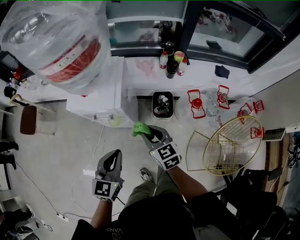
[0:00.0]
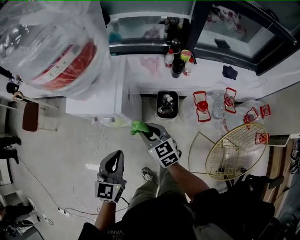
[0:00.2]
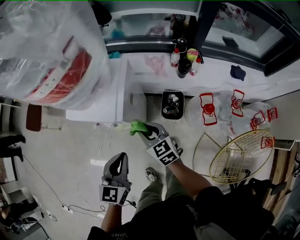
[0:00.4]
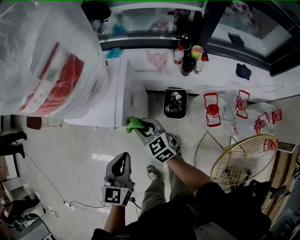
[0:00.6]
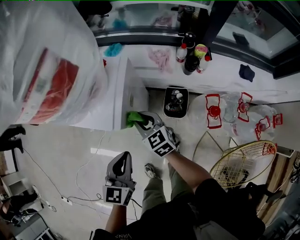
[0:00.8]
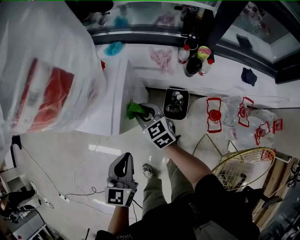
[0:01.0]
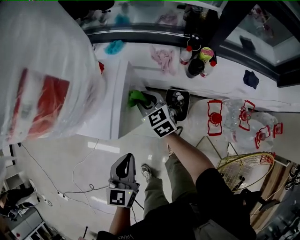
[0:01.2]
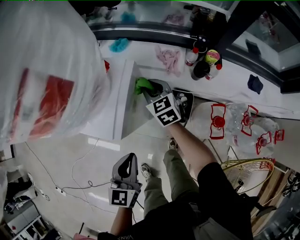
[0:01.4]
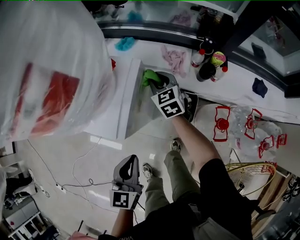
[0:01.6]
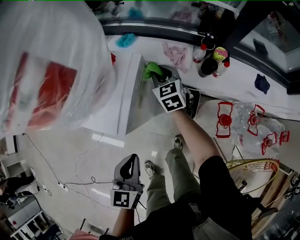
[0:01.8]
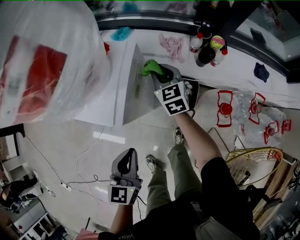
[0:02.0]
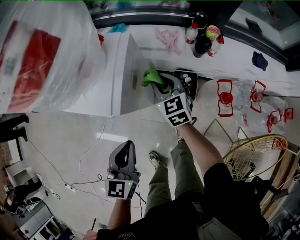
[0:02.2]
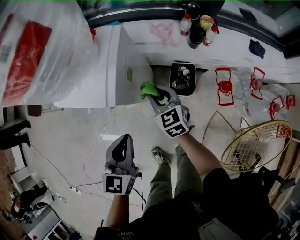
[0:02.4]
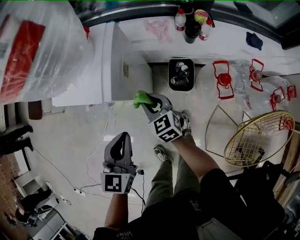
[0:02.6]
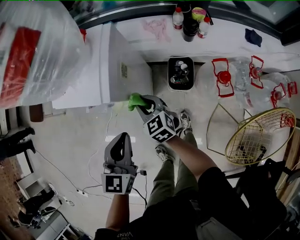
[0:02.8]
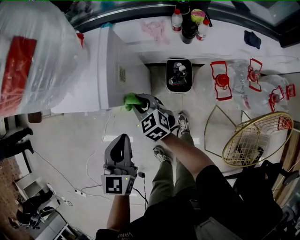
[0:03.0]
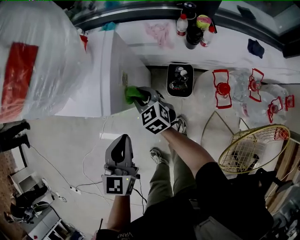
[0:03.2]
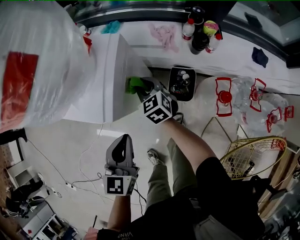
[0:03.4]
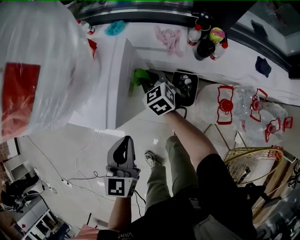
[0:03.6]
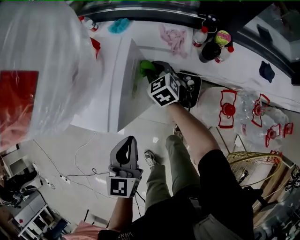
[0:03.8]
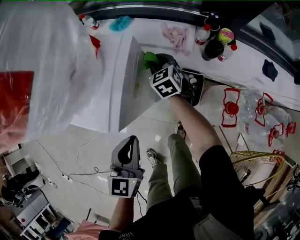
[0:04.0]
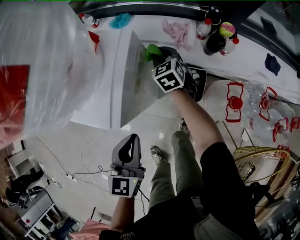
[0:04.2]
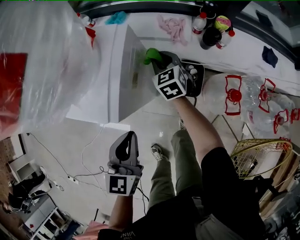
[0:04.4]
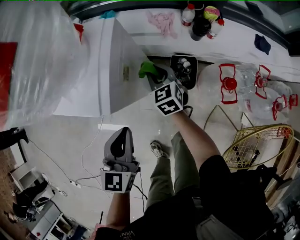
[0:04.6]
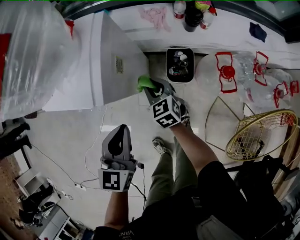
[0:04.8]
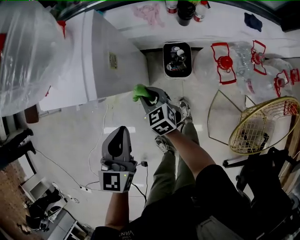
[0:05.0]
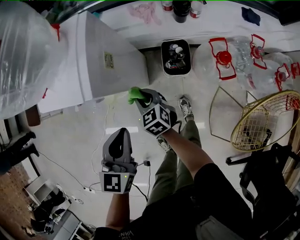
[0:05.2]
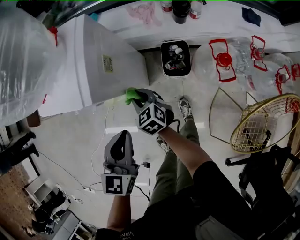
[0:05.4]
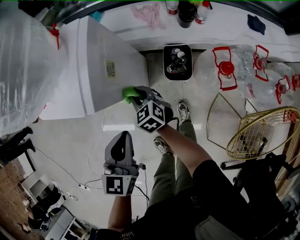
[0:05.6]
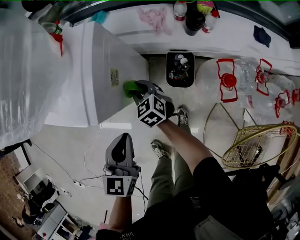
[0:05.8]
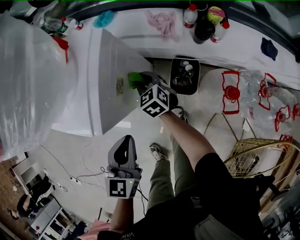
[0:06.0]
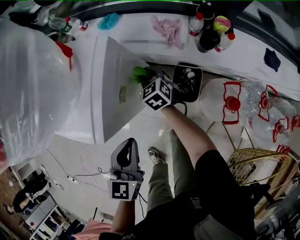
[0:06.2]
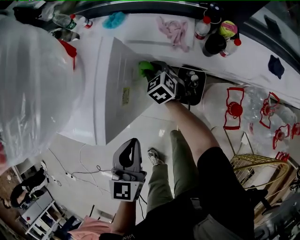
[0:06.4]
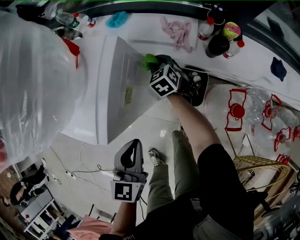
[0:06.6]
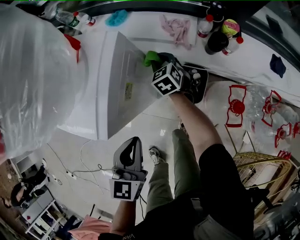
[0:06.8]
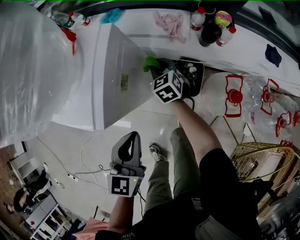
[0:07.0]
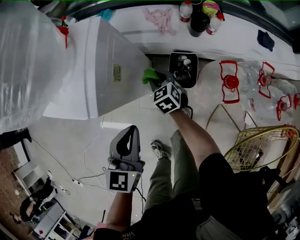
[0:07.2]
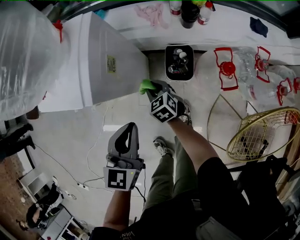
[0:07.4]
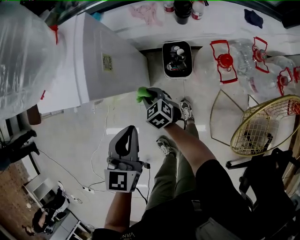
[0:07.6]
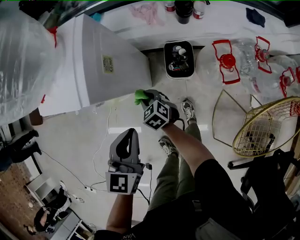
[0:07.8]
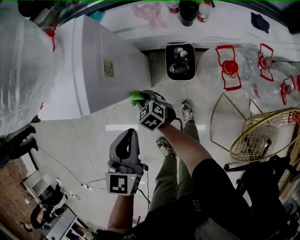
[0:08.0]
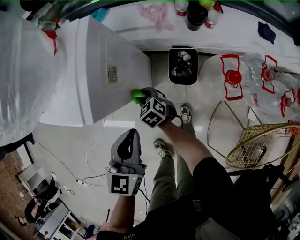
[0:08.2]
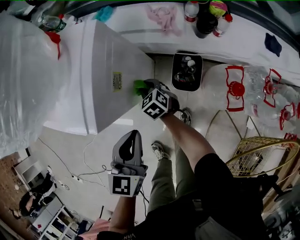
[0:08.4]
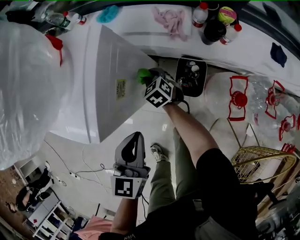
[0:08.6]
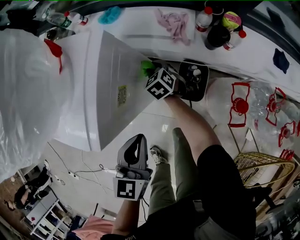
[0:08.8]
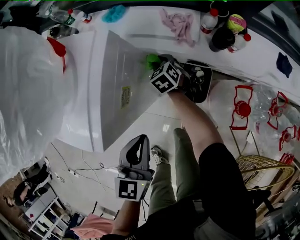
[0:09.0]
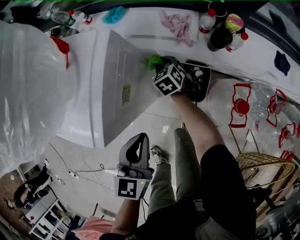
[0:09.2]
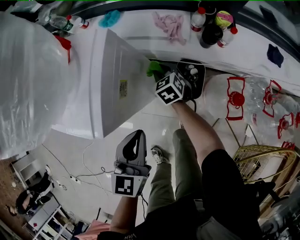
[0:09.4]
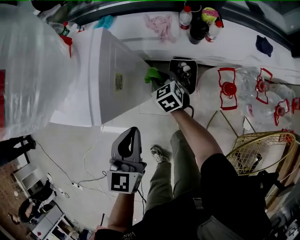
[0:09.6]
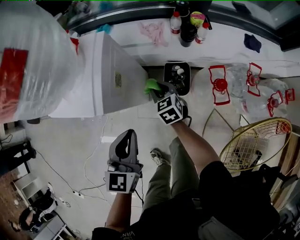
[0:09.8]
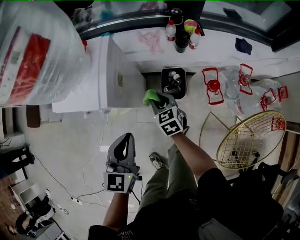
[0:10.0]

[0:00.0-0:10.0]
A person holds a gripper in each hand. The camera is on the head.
0:00.0 to 0:01.4: The left gripper is displaced forward, downward and to the right by about 15 cm, while the right gripper goes about 30 cm forward.
0:01.4 to 0:02.8: The left gripper moves about 5 cm, while the right gripper moves backward, some 20 cm.
0:02.8 to 0:04.2: The left gripper travels forward by approximately 5 cm, while the right gripper travels forward by some 25 cm.
0:04.2 to 0:05.8: The right gripper moves backward, approximately 20 cm.
0:05.8 to 0:07.2: The right gripper heads to the right, covering approximately 5 cm, and travels forward and back again, roughly 15 cm each way.
0:07.2 to 0:08.6: The right gripper moves forward and downward, some 10 cm.
0:08.6 to 0:10.0: The left gripper heads upward and backward, covering approximately 10 cm; the right gripper goes roughly 25 cm upward, backward and to the right, and rotates approximately 20 degrees.

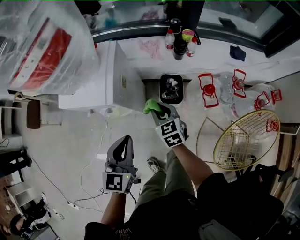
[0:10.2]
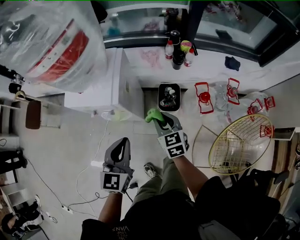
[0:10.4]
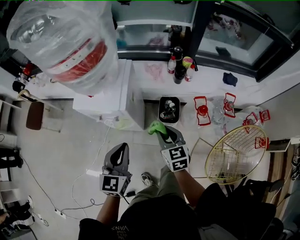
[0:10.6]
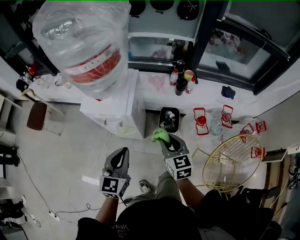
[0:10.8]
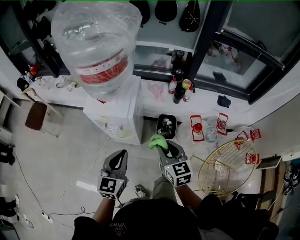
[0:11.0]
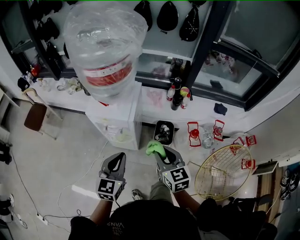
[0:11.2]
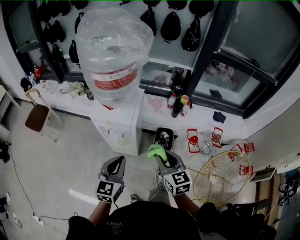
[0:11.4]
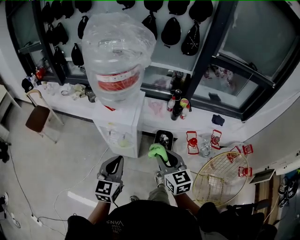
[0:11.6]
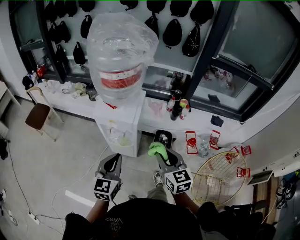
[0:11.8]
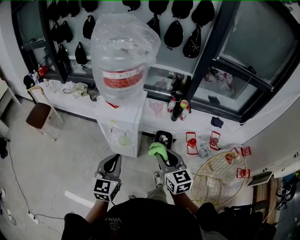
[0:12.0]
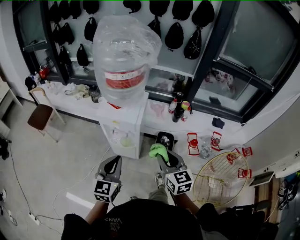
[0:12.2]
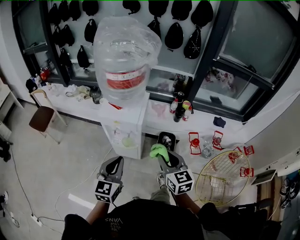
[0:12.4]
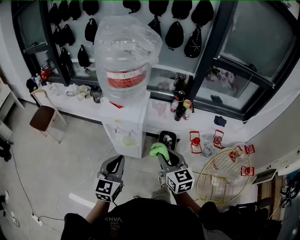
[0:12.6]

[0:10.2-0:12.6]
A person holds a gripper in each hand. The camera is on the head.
0:10.2 to 0:11.4: The right gripper heads upward and backward, covering approximately 25 cm. Meanwhile the left gripper is displaced upward, to the left and backward by about 15 cm.
0:11.4 to 0:12.6: The left gripper moves some 5 cm.

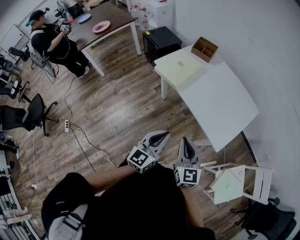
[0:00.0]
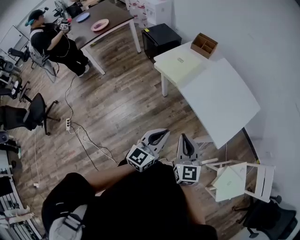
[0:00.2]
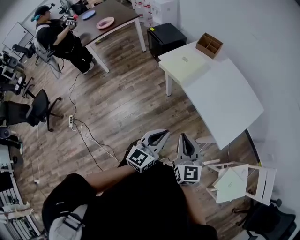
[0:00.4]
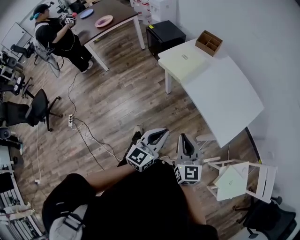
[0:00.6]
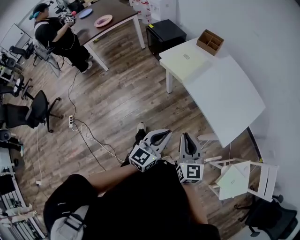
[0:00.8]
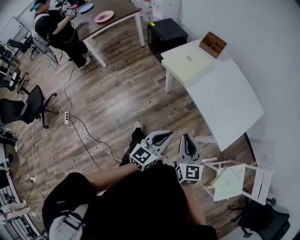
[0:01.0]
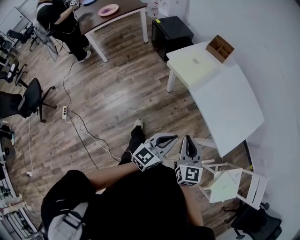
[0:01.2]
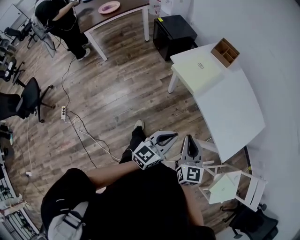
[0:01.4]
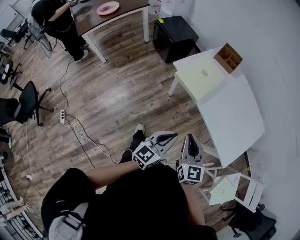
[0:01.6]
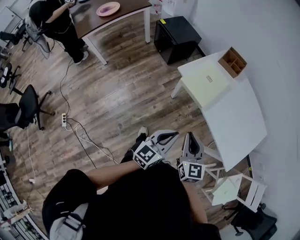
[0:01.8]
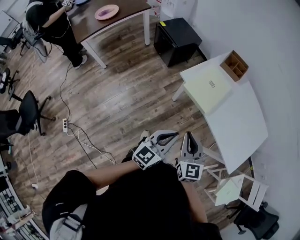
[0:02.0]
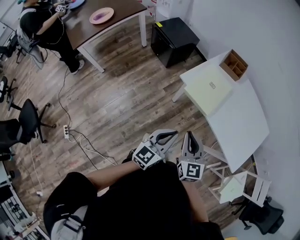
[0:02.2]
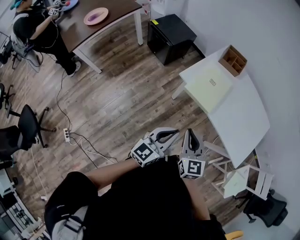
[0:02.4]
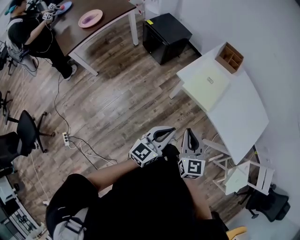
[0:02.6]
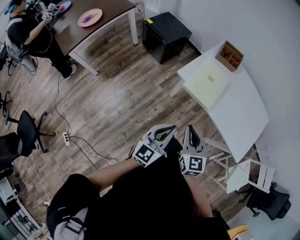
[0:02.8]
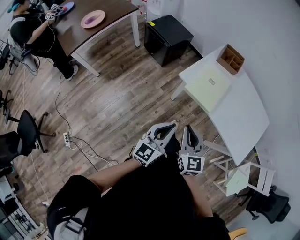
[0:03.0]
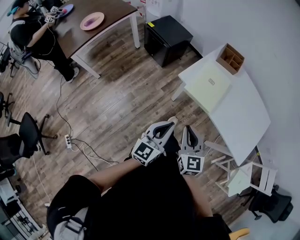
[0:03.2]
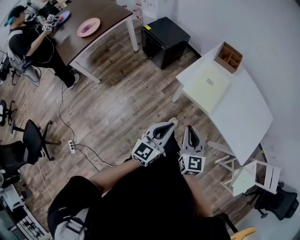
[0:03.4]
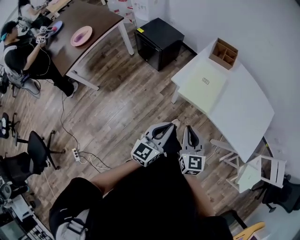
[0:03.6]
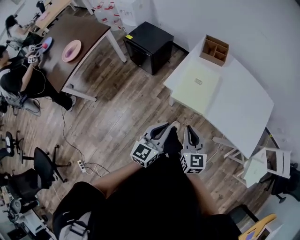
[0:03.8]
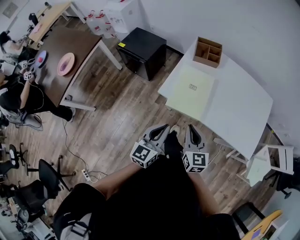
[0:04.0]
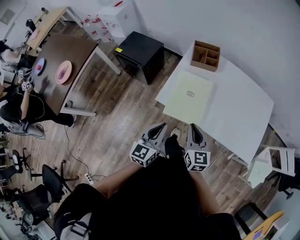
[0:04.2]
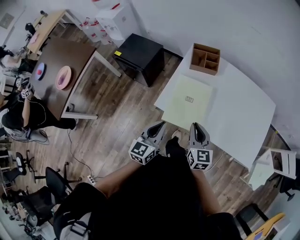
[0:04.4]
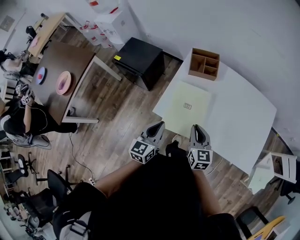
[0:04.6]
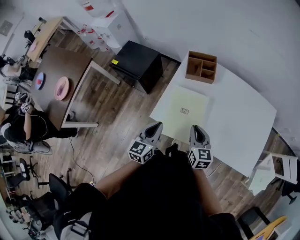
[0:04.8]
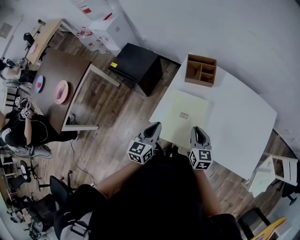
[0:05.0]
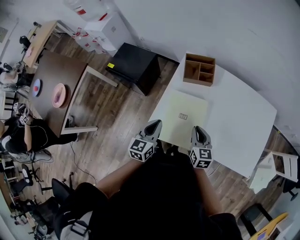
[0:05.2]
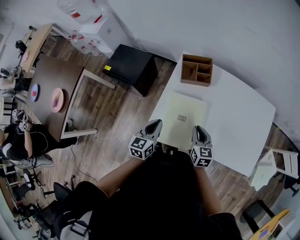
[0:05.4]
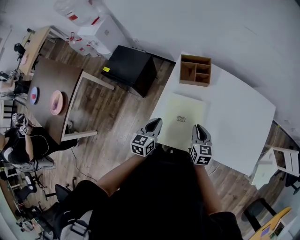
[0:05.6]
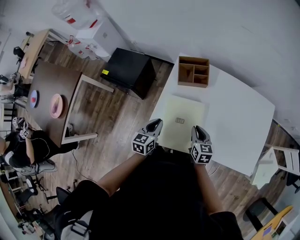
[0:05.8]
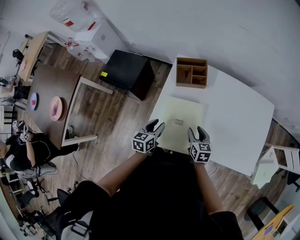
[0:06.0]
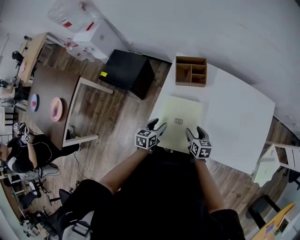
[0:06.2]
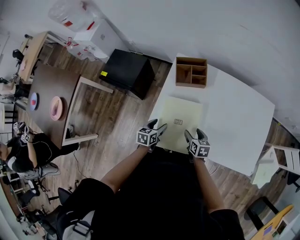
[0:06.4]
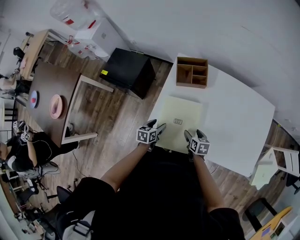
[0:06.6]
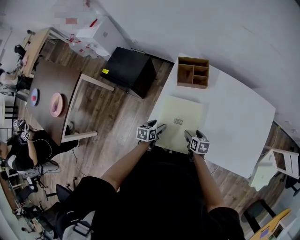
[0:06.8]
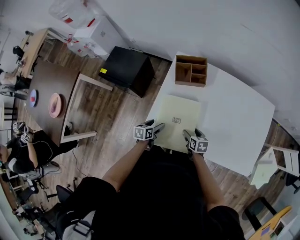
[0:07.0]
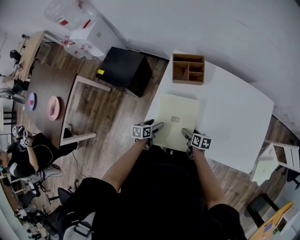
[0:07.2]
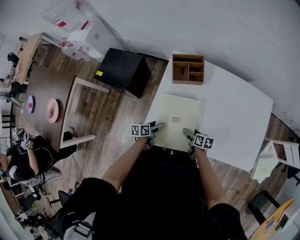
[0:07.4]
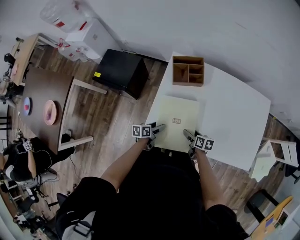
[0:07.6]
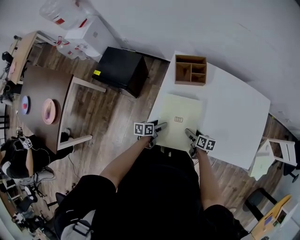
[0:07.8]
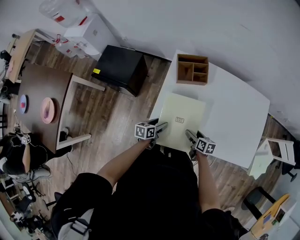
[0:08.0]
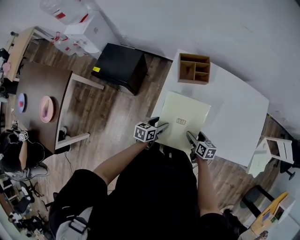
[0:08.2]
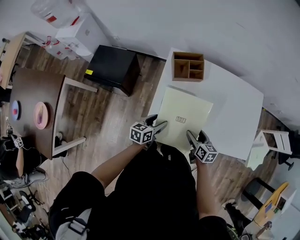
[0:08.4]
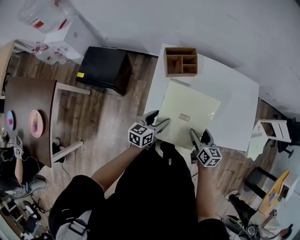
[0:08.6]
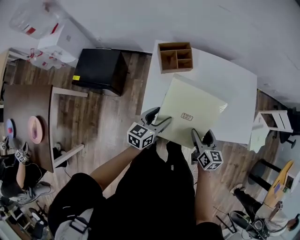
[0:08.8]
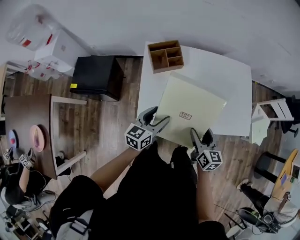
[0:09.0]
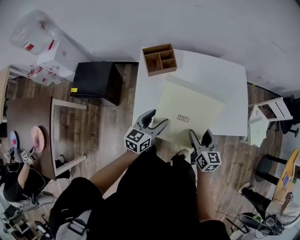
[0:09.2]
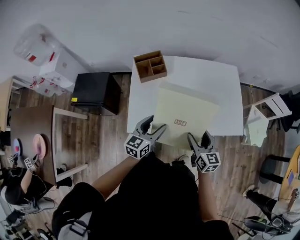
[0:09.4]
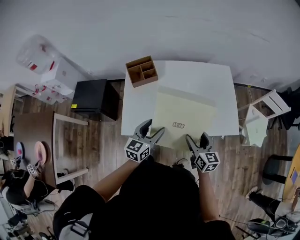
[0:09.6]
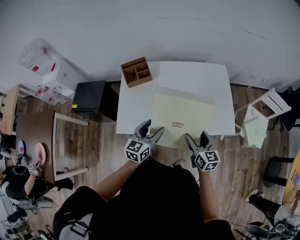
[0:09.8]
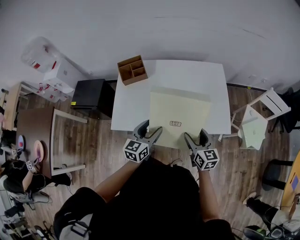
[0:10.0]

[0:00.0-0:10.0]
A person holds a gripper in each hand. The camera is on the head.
0:00.0 to 0:01.4: The grippers both shift to the left and forward by some 15 cm.
0:01.4 to 0:02.8: The two grippers go about 25 cm to the left and forward.
0:02.8 to 0:04.2: The left gripper is displaced forward by approximately 20 cm; the right gripper heads forward and to the right, covering approximately 20 cm.
0:04.2 to 0:05.8: The two grippers go approximately 25 cm forward and downward. The right gripper changes its angle by about 20 degrees.
0:05.8 to 0:07.2: Both grippers move downward, about 15 cm. The left gripper rotates some 30 degrees, and opens its fingers. The right gripper changes its angle by roughly 30 degrees, and opens.
0:07.2 to 0:08.6: Both grippers travel together upward, some 15 cm. The left gripper changes its angle by about 30 degrees. The right gripper changes its angle by approximately 30 degrees.
0:08.6 to 0:10.0: Both grippers travel together to the right, approximately 25 cm.

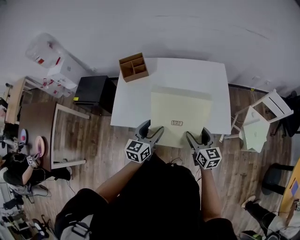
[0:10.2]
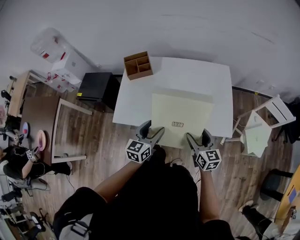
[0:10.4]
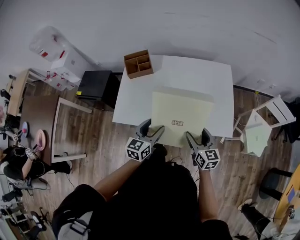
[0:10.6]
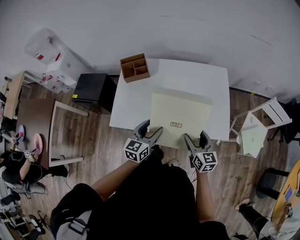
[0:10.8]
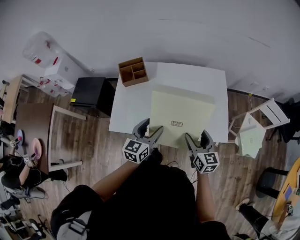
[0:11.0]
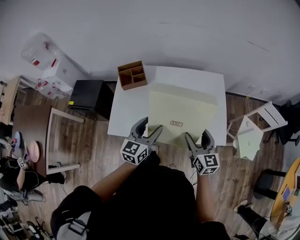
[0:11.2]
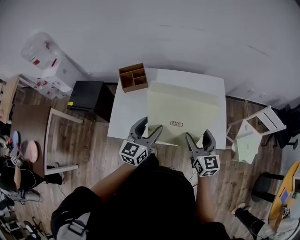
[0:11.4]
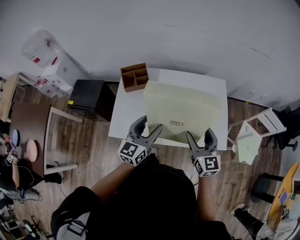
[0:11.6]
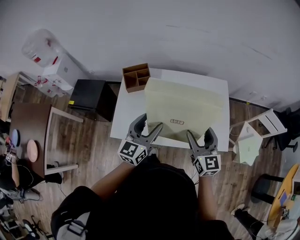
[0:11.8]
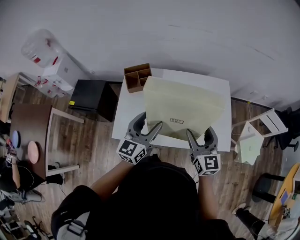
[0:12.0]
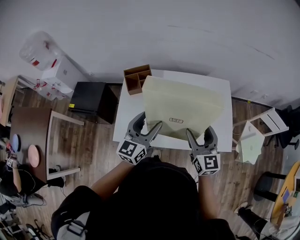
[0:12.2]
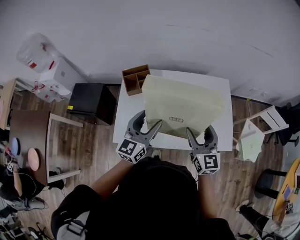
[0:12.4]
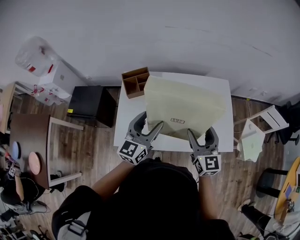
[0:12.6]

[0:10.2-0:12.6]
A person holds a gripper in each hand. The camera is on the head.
0:10.2 to 0:11.4: The two grippers go about 10 cm upward and forward.
0:11.4 to 0:12.6: The right gripper goes some 5 cm to the left. The left gripper heads to the left and forward, covering approximately 10 cm.
